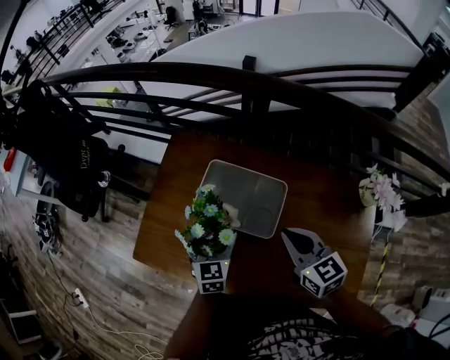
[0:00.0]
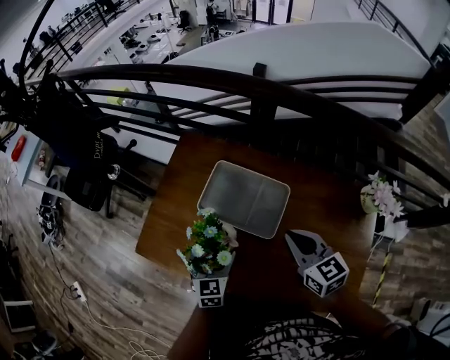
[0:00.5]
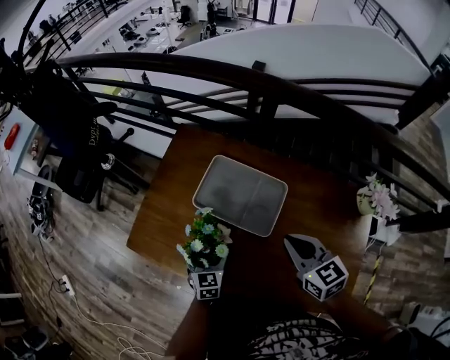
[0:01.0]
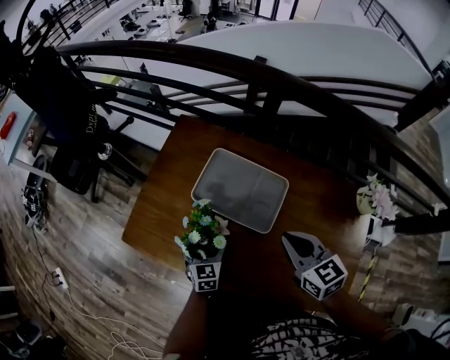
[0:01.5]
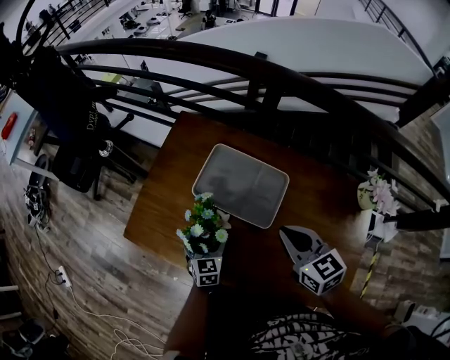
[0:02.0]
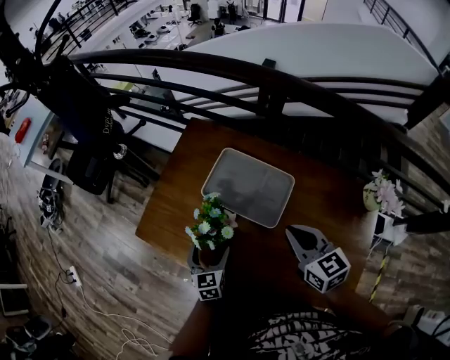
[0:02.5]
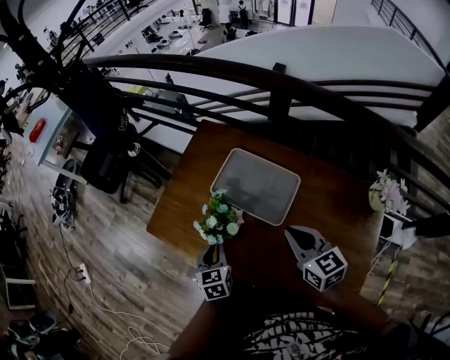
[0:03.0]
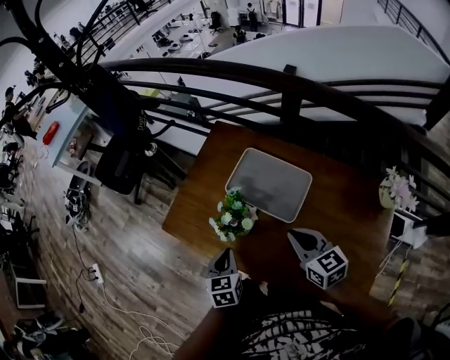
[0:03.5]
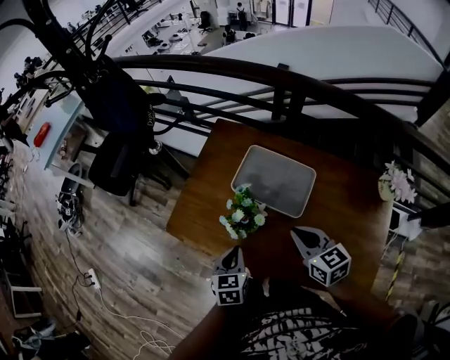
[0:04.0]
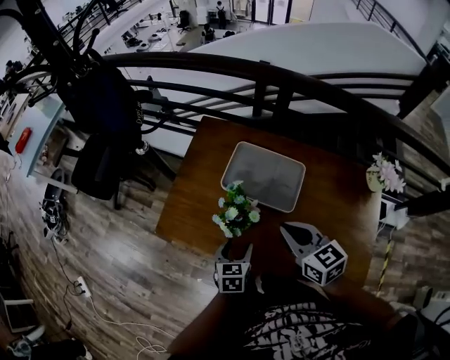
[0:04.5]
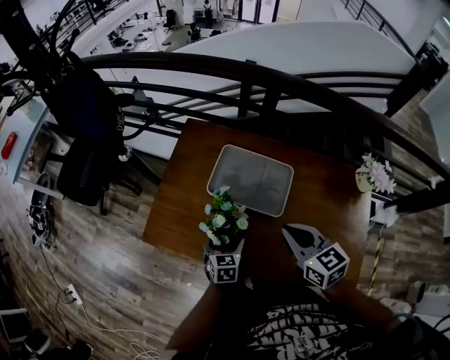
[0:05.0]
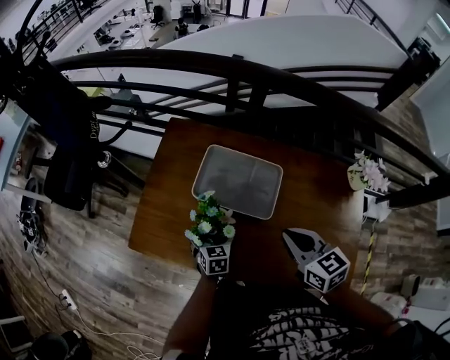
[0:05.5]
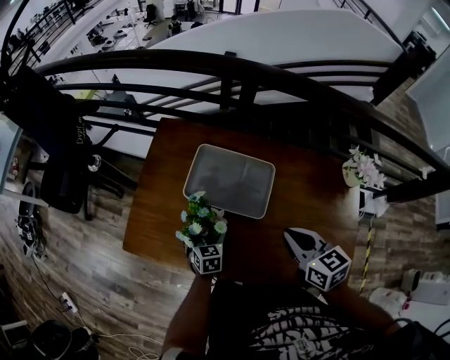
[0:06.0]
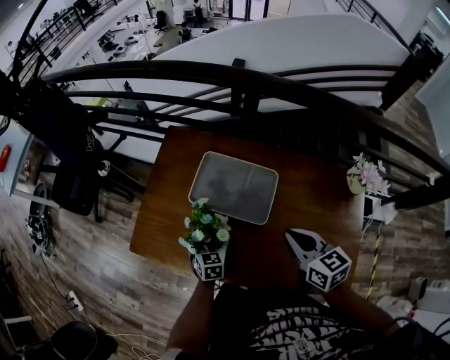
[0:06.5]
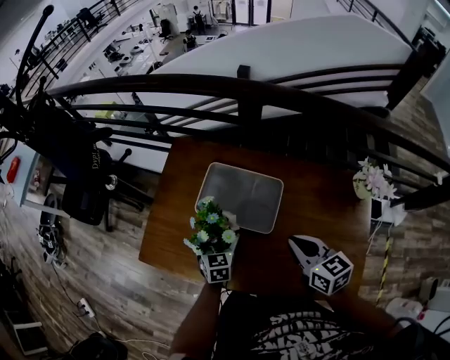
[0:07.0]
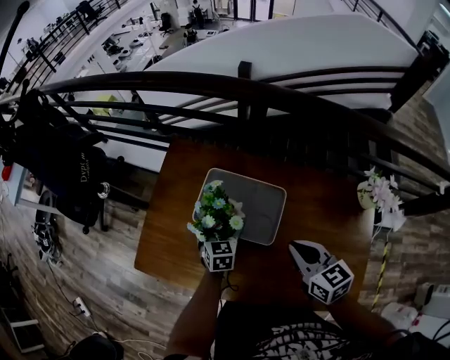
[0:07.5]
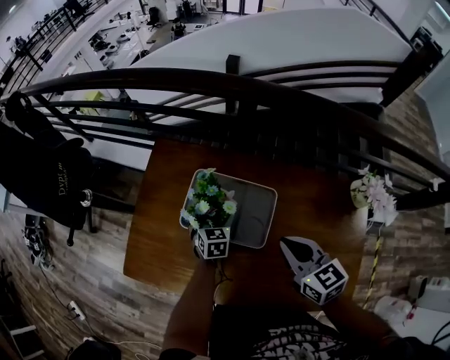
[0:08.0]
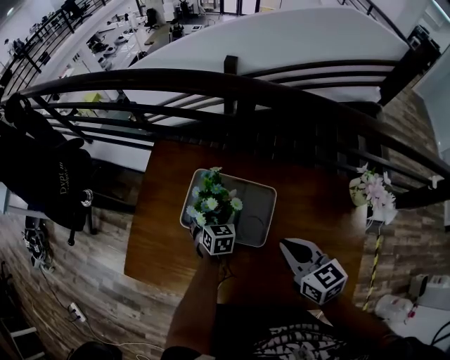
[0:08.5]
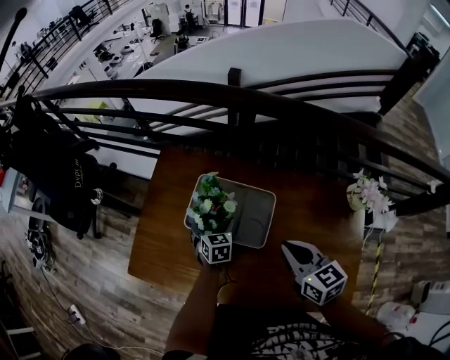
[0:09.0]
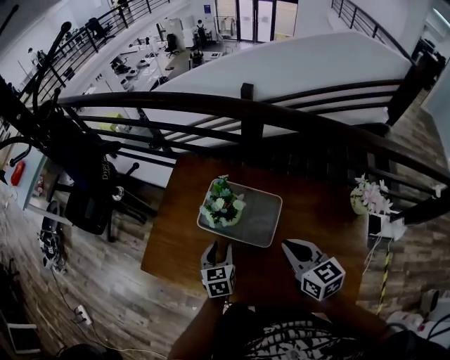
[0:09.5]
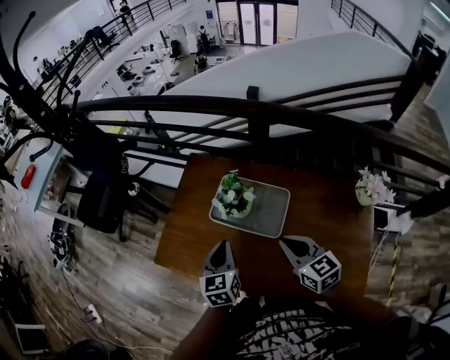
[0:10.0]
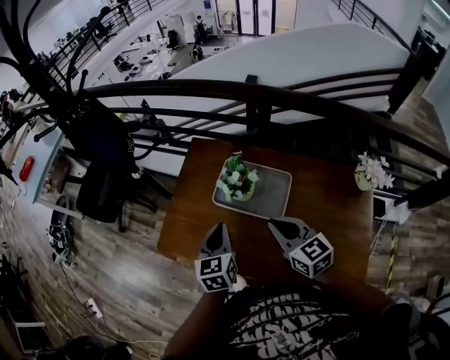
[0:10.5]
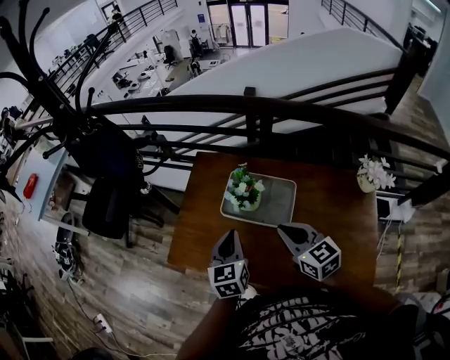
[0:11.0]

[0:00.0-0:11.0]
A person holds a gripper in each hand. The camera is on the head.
0:00.0 to 0:02.0: The left gripper is displaced downward and backward by approximately 15 cm.
0:02.0 to 0:03.5: The right gripper changes place by some 5 cm. Meanwhile the left gripper is displaced upward, backward and to the left by some 15 cm, and closes its fingers.
0:03.5 to 0:05.5: The left gripper shifts roughly 15 cm downward and forward, and opens; the right gripper reaches some 5 cm to the left, then returns.
0:05.5 to 0:07.5: The left gripper goes roughly 15 cm forward, to the right and upward. Meanwhile the right gripper moves to the right, about 5 cm.
0:09.0 to 0:11.0: The left gripper travels upward, backward and to the left by some 30 cm, changes its angle by some 20 degrees, and closes its fingers, while the right gripper is displaced to the left and upward by about 15 cm.

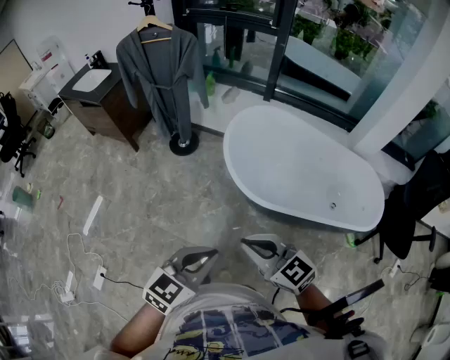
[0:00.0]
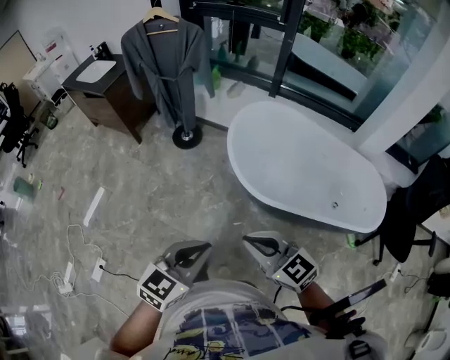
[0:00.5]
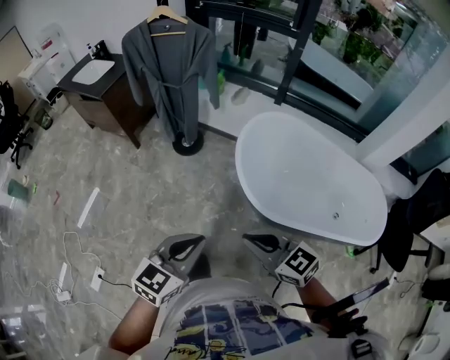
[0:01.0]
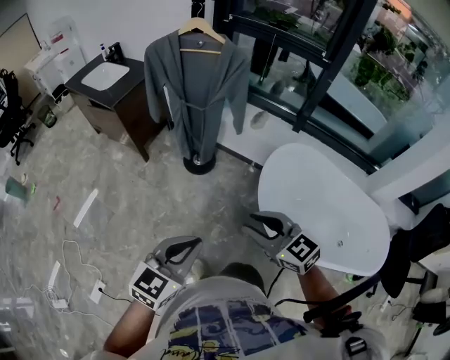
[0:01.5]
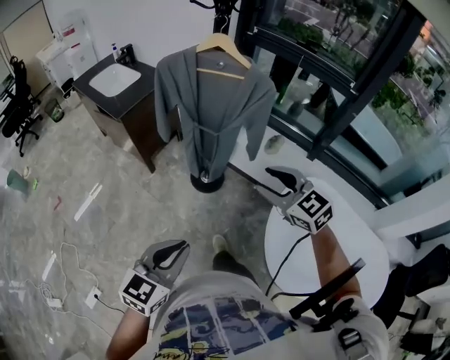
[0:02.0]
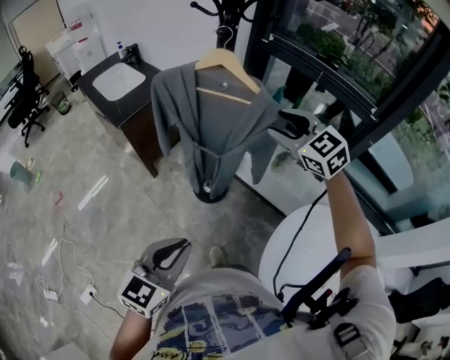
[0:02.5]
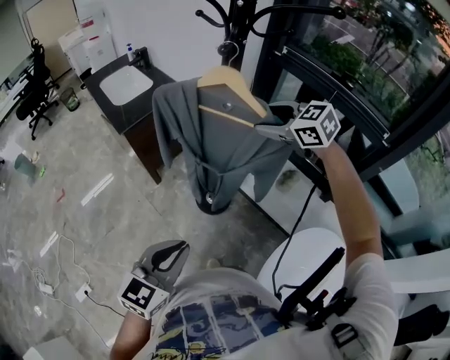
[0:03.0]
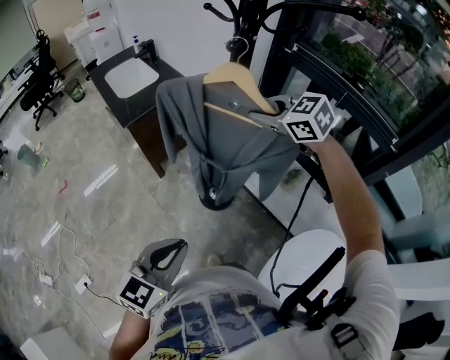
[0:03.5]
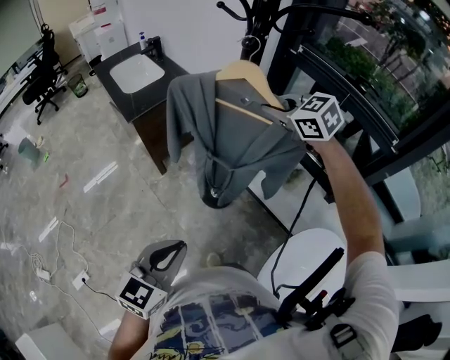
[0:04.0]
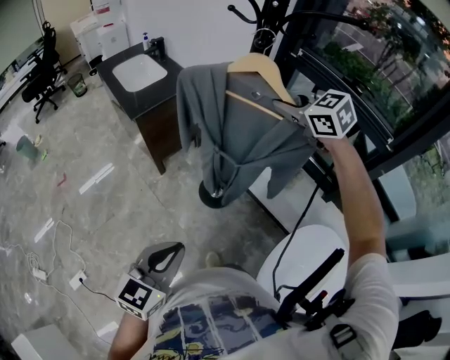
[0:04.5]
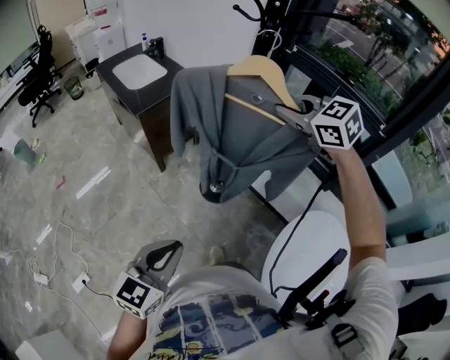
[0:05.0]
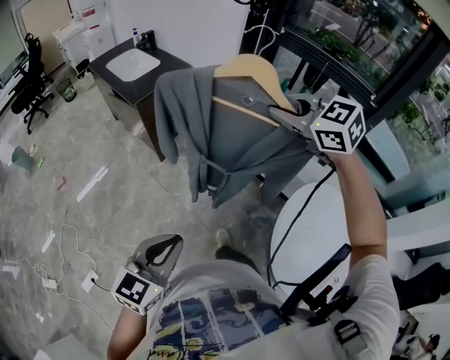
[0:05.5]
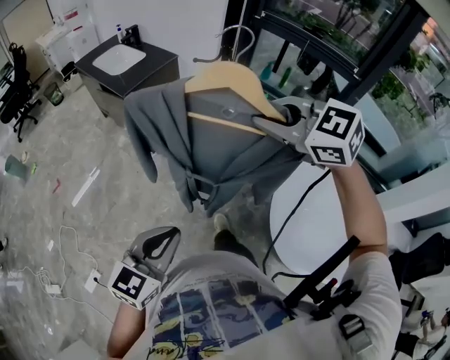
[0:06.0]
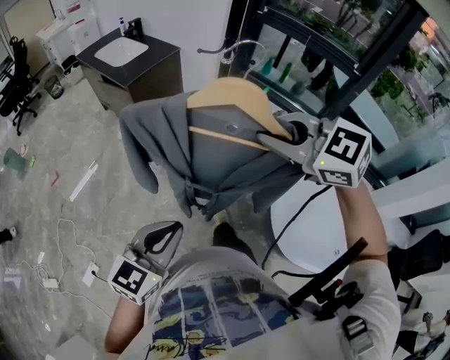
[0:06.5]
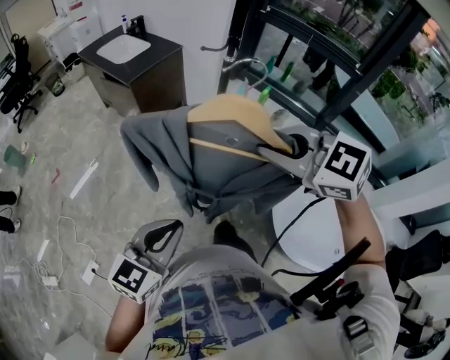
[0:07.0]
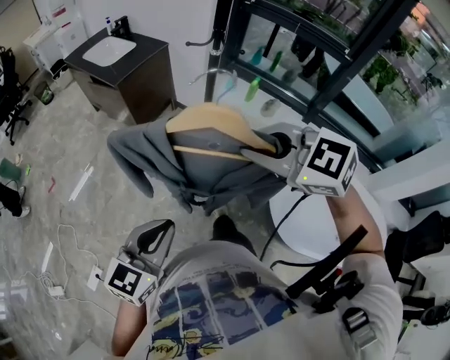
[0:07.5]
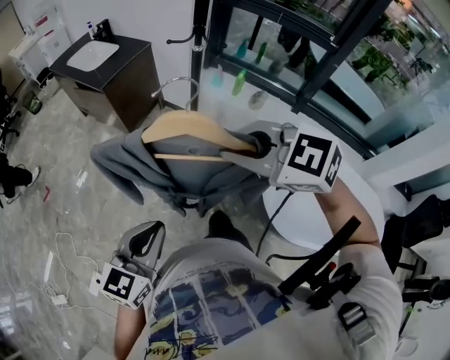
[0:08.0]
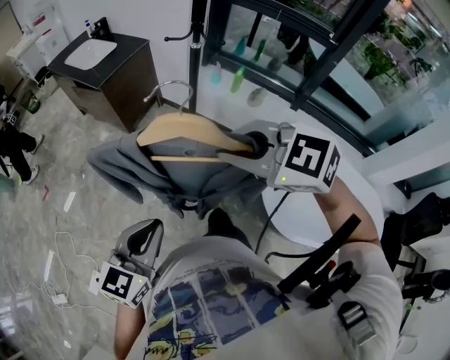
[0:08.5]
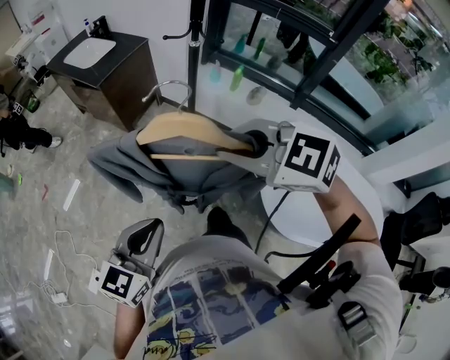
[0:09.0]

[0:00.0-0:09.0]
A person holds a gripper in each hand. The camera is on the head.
0:00.0 to 0:02.0: Both grippers are carried forward, about 50 cm. The right gripper opens. The left gripper changes its angle by approximately 20 degrees.
0:02.0 to 0:04.5: The left gripper shifts roughly 15 cm forward, while the right gripper shifts roughly 35 cm forward, and closes up.
0:04.5 to 0:07.0: The left gripper moves backward and to the left, roughly 25 cm. The right gripper heads backward, covering about 40 cm.
0:07.0 to 0:09.0: The grippers make only small movements.

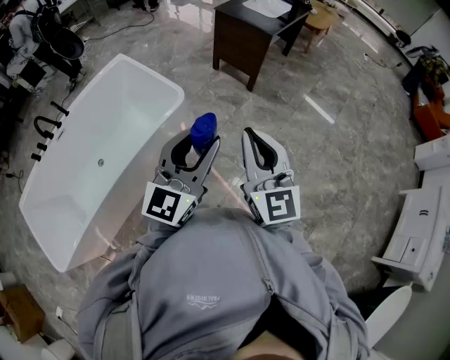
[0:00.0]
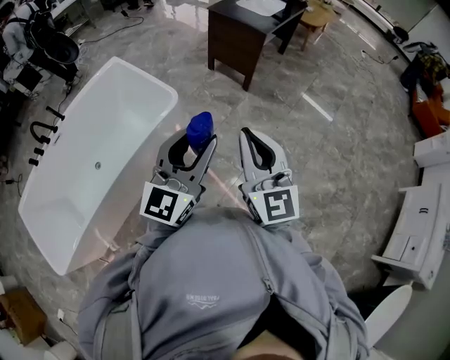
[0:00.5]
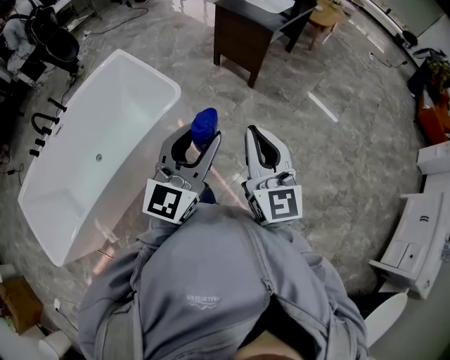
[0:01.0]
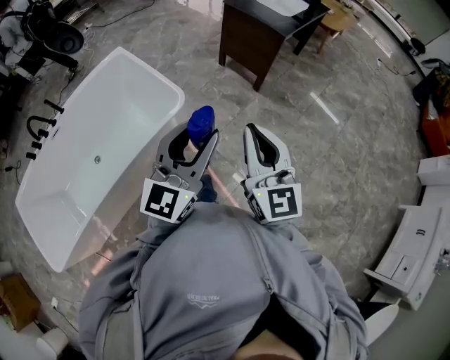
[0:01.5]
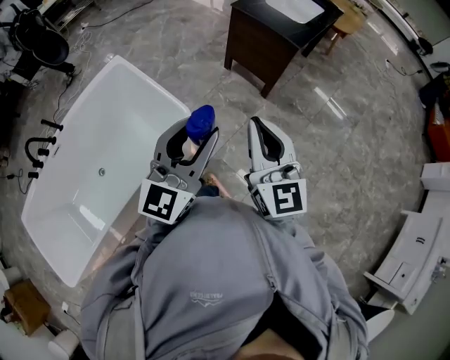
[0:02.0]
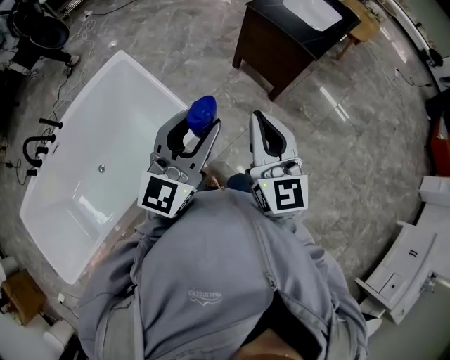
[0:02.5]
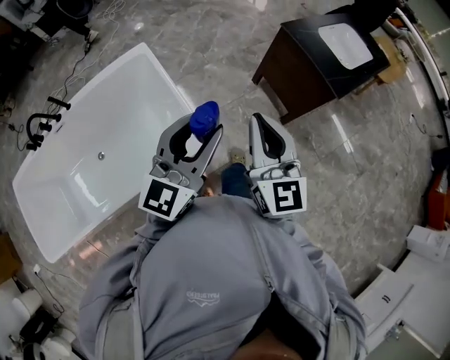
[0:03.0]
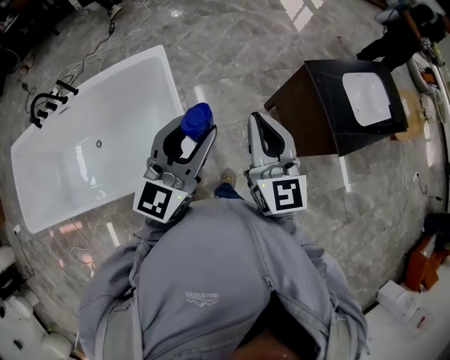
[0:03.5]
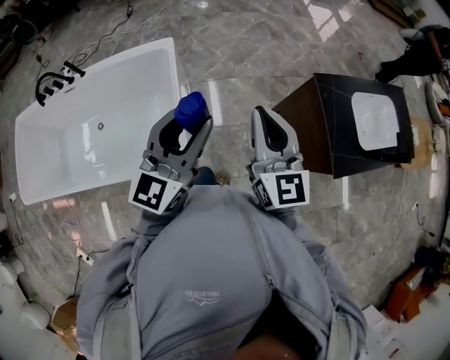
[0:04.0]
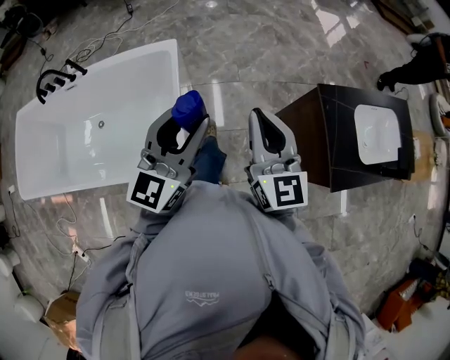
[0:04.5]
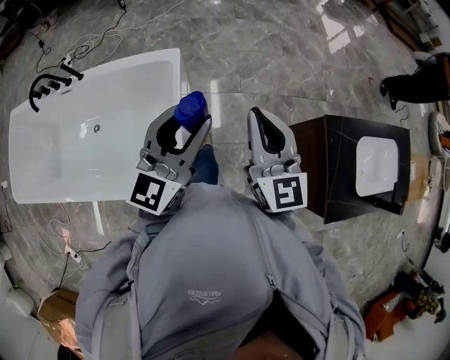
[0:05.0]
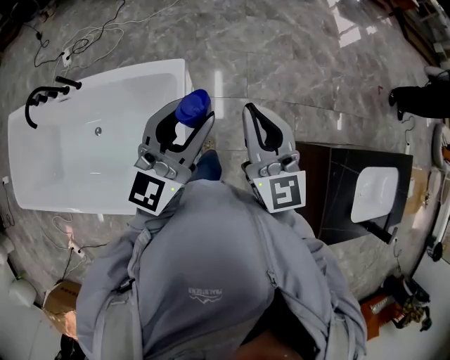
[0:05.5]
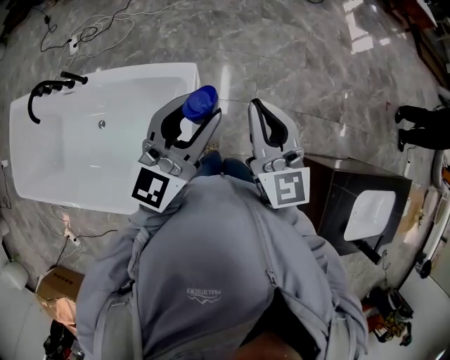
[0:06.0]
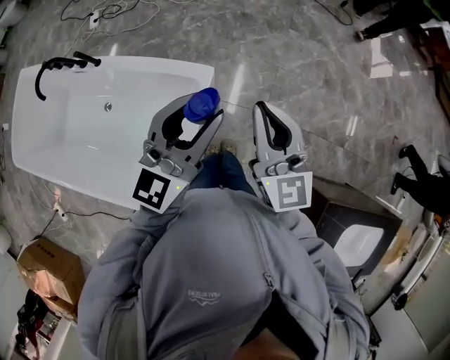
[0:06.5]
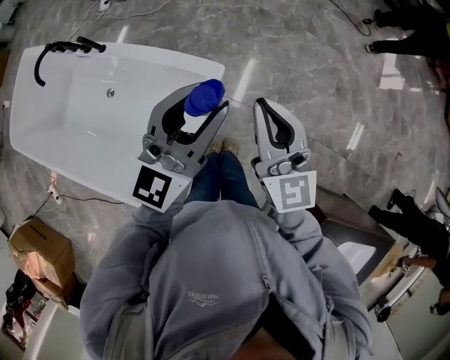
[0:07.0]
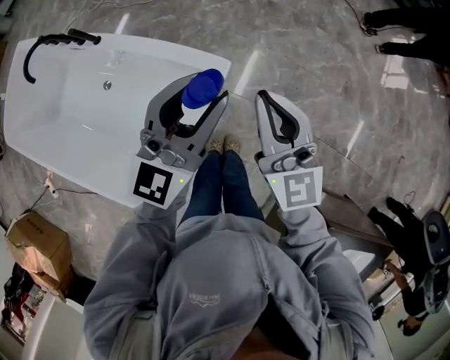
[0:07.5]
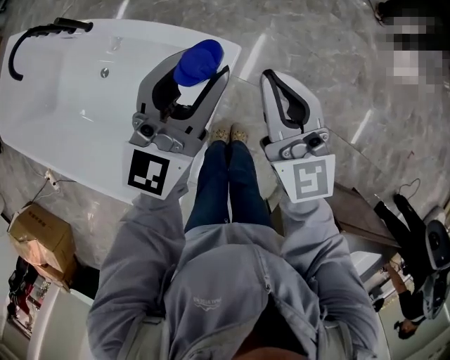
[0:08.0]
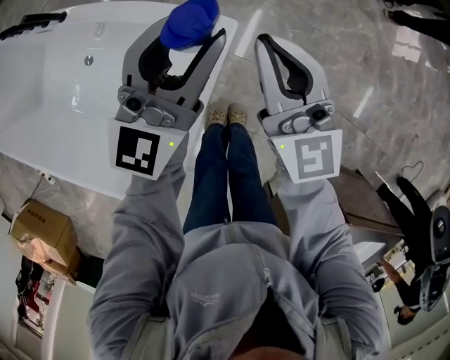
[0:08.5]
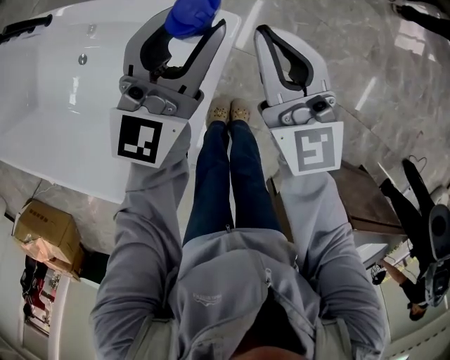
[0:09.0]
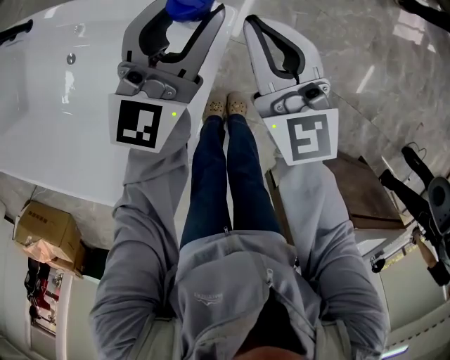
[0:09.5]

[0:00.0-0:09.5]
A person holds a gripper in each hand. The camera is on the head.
0:00.0 to 0:02.0: The two grippers go approximately 25 cm forward.
0:02.0 to 0:04.0: The left gripper changes place by approximately 35 cm, and changes its angle by some 40 degrees; the right gripper moves about 40 cm, and changes its angle by approximately 40 degrees.
0:04.0 to 0:05.5: Both grippers travel together forward, some 30 cm.
0:05.5 to 0:07.5: The two grippers go approximately 25 cm forward, downward and to the left. The right gripper rotates approximately 20 degrees. The left gripper changes its angle by some 20 degrees.
0:07.5 to 0:09.5: The two grippers go approximately 25 cm downward and forward.
